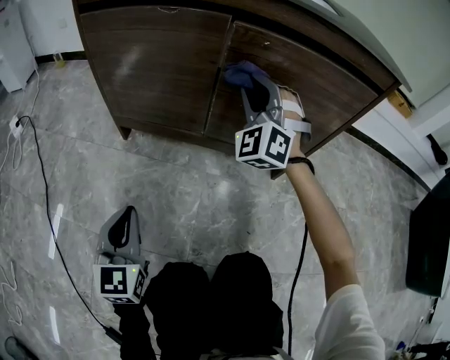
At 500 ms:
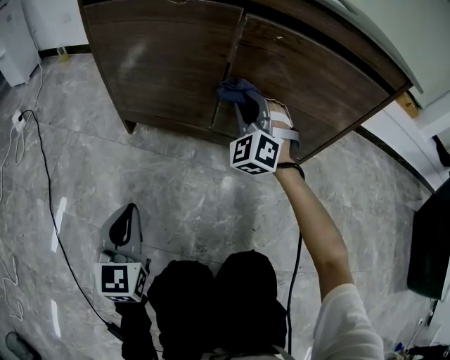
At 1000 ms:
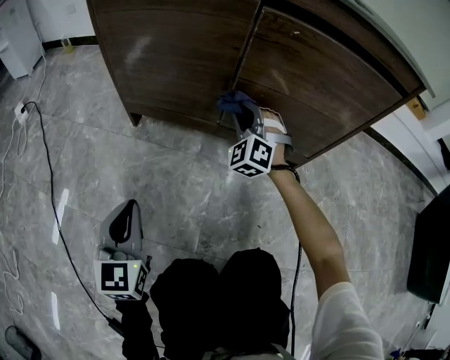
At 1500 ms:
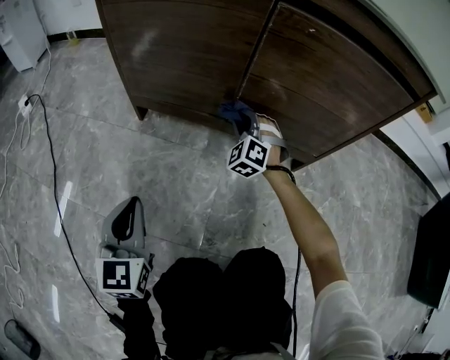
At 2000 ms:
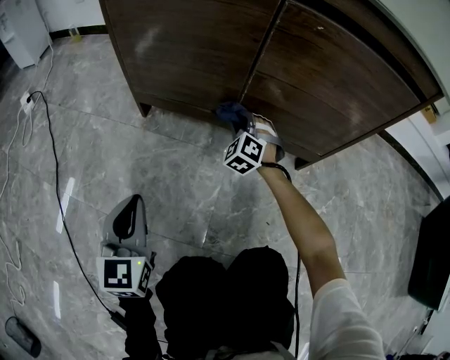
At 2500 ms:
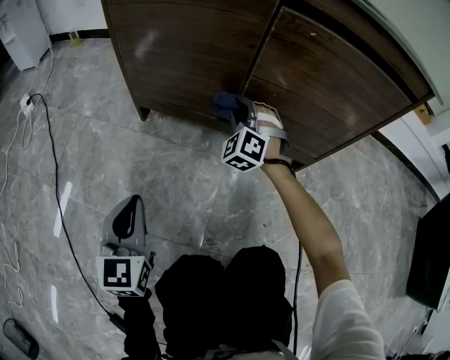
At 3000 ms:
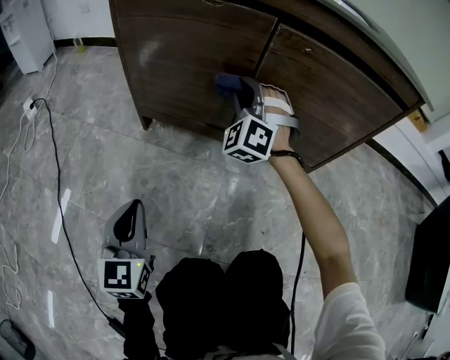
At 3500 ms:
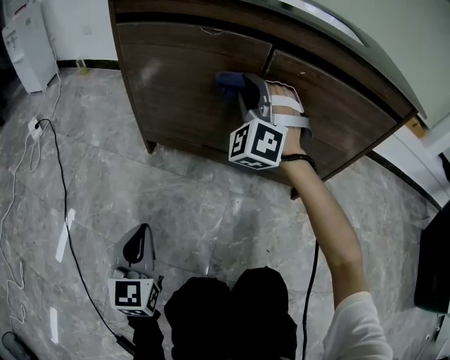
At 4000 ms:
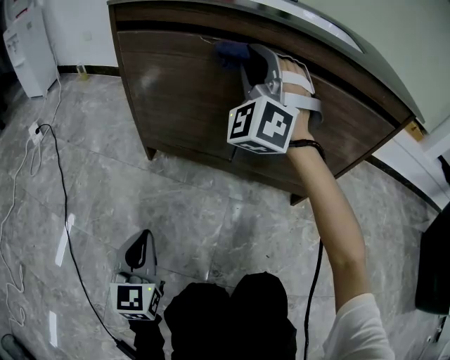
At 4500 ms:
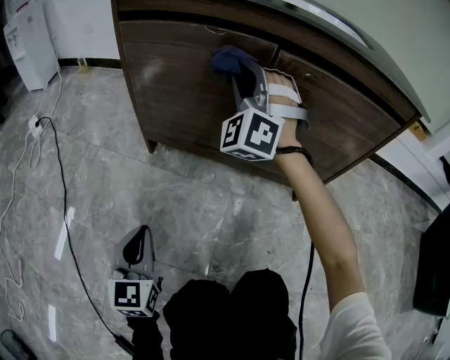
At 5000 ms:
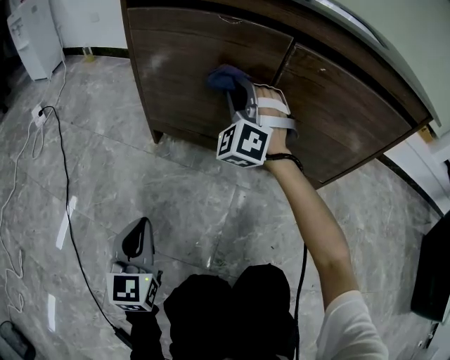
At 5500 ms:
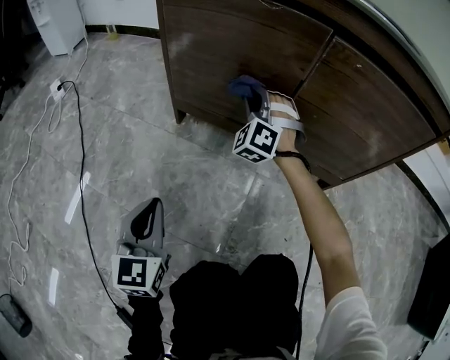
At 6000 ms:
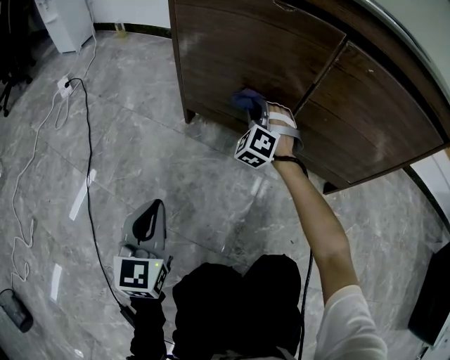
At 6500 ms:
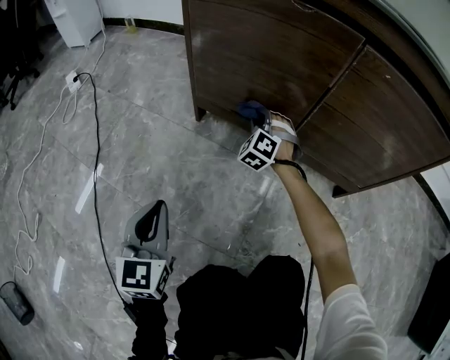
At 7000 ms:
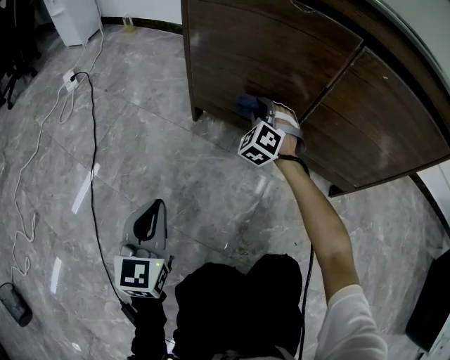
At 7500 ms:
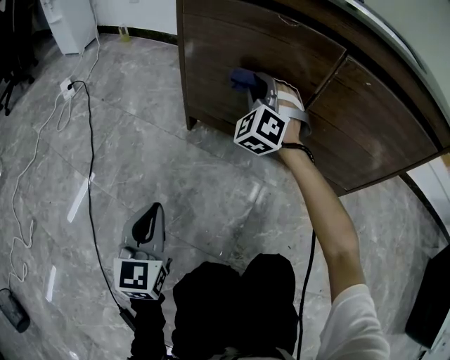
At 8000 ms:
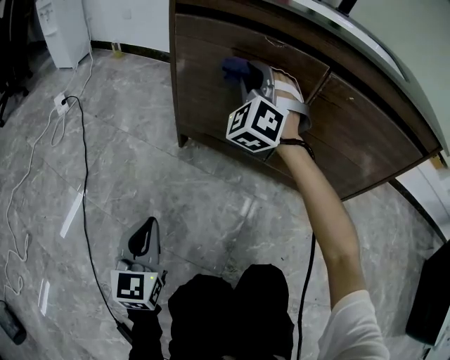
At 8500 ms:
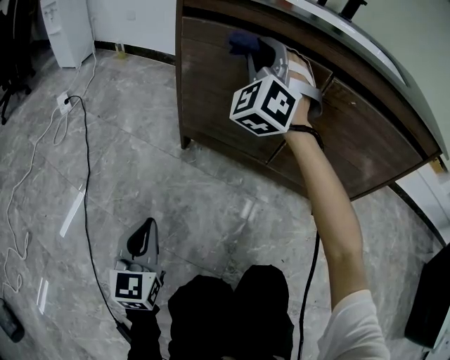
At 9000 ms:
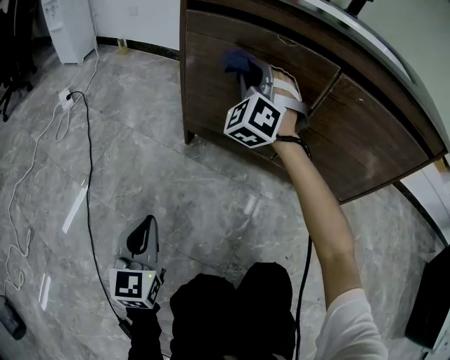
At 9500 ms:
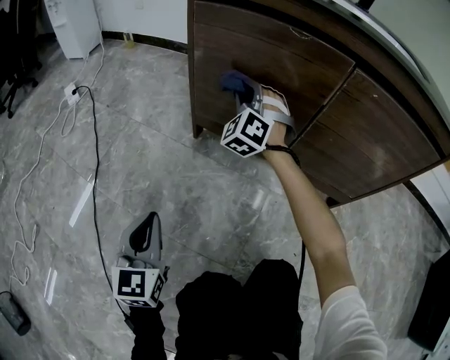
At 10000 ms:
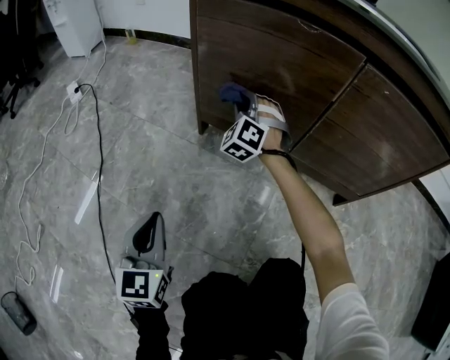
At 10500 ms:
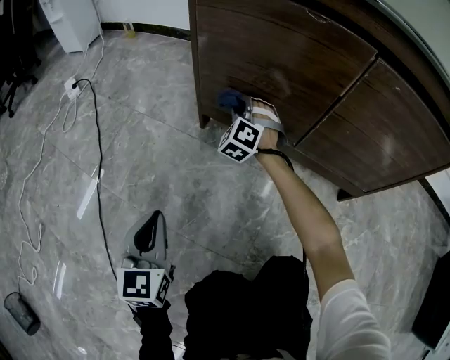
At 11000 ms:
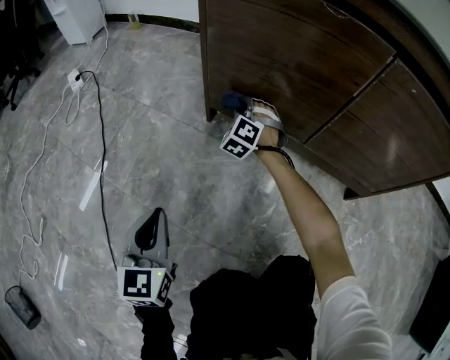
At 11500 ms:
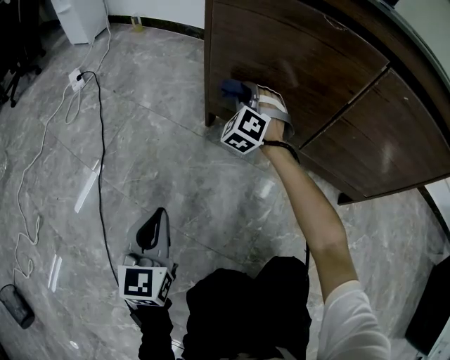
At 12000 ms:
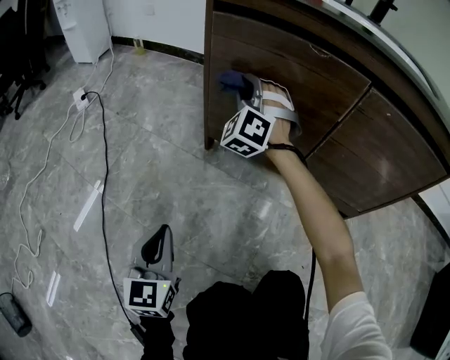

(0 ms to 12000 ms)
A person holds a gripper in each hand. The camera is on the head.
0 ms - 2000 ms: The right gripper heads downward, covering roughly 30 cm, and rotates approximately 30 degrees.
2000 ms - 4000 ms: The right gripper shifts about 40 cm upward, and angles its fingers upward, by approximately 40 degrees.
4000 ms - 6000 ms: The right gripper heads downward, covering some 30 cm, and changes its angle by some 30 degrees; the left gripper travels to the left by some 5 cm.
6000 ms - 8000 ms: The right gripper is displaced upward by roughly 25 cm.
8000 ms - 10000 ms: The right gripper moves downward, roughly 20 cm.
10000 ms - 12000 ms: The right gripper is displaced upward by about 10 cm.

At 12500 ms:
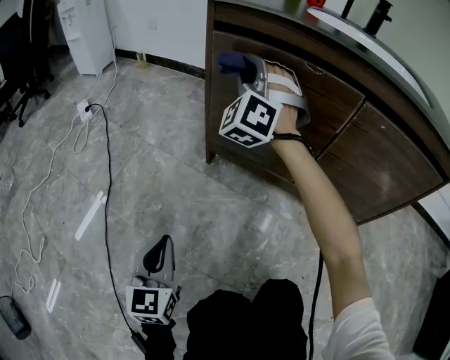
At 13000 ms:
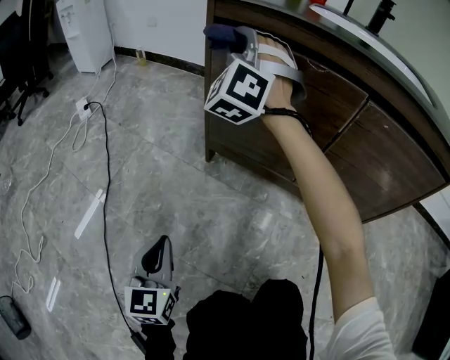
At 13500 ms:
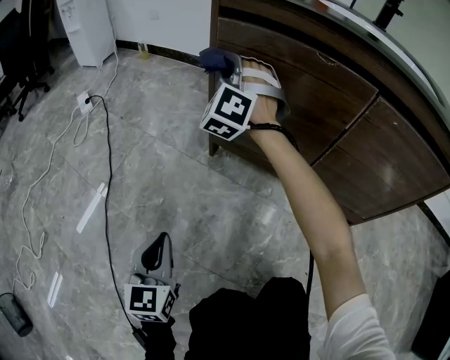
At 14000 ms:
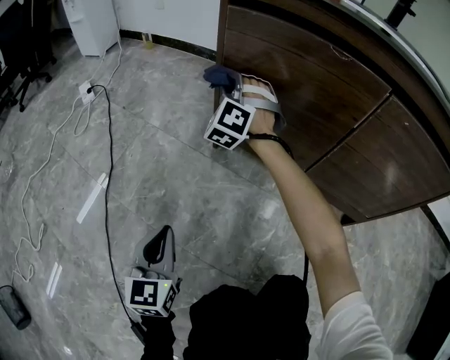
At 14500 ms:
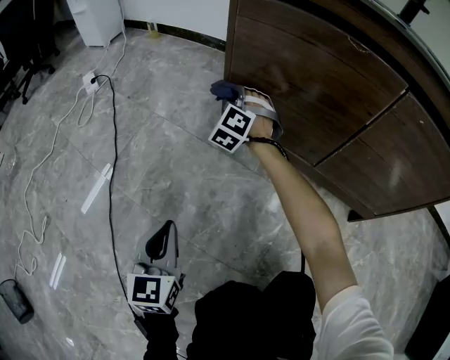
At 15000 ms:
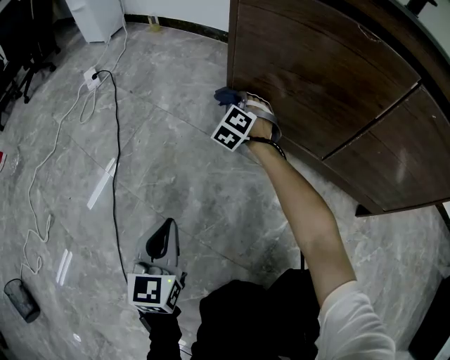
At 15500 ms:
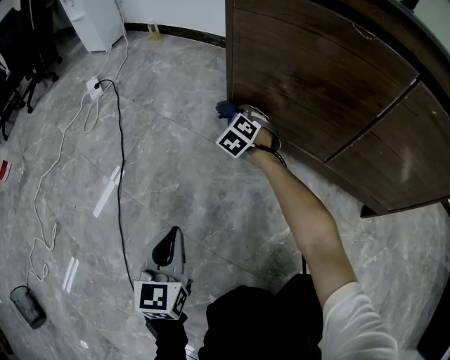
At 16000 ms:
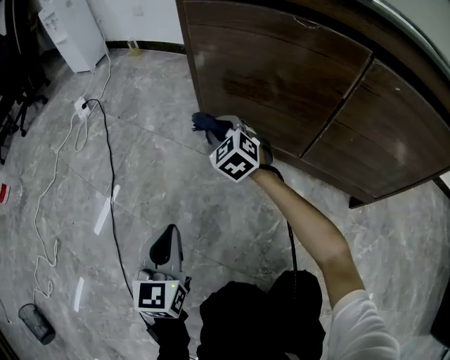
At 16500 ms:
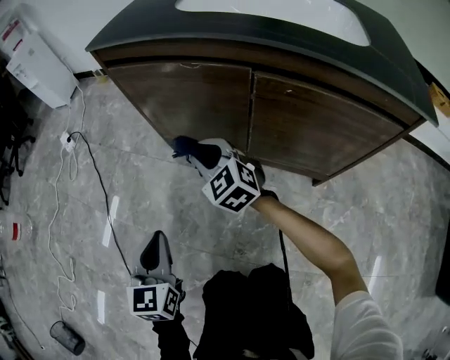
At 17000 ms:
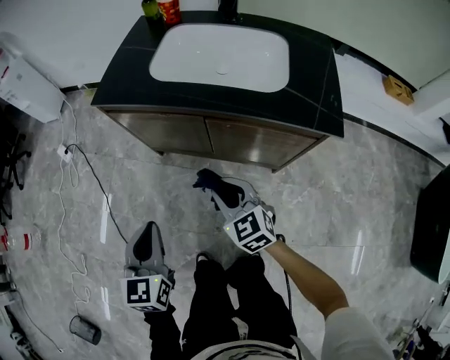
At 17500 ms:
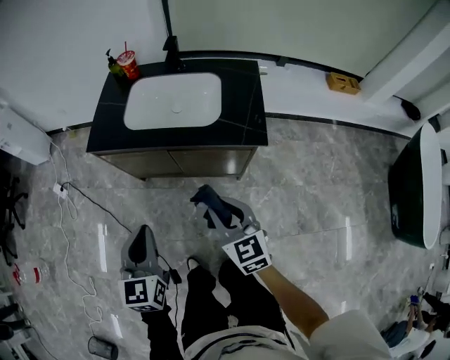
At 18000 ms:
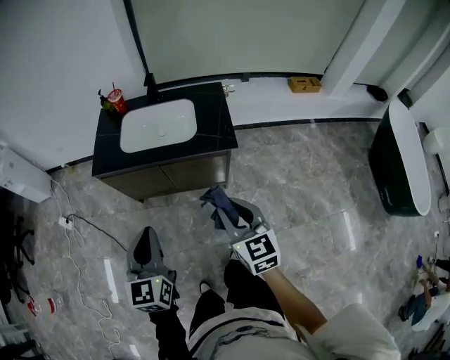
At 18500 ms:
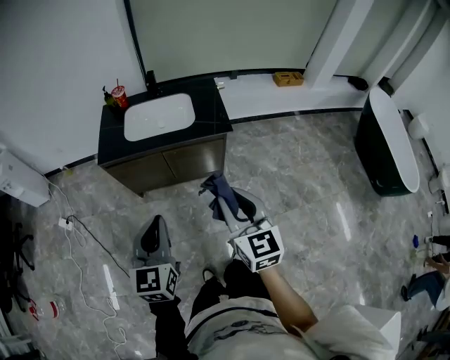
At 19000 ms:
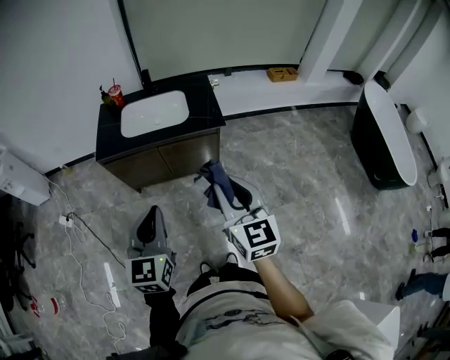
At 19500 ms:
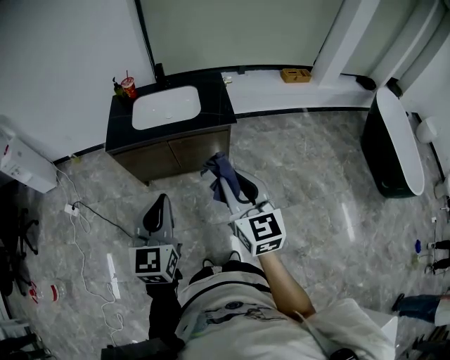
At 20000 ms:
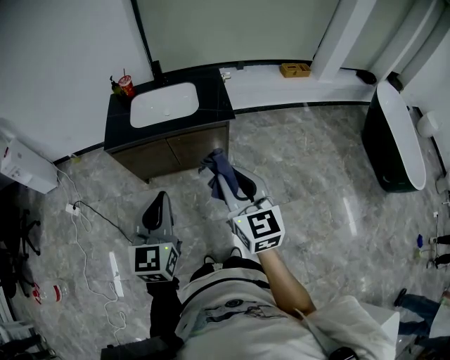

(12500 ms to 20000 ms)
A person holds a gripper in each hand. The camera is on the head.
12500 ms - 14500 ms: The right gripper moves downward, roughly 25 cm, and swivels approximately 30 degrees.
14500 ms - 16500 ms: The left gripper moves upward and to the right, approximately 20 cm. The right gripper goes some 30 cm backward, upward and to the right, and swivels approximately 50 degrees.
16500 ms - 18000 ms: Both grippers move upward, roughly 60 cm. The left gripper rotates about 20 degrees; the right gripper rotates about 50 degrees.
18000 ms - 20000 ms: The left gripper is displaced backward and upward by approximately 15 cm. The right gripper is displaced upward and backward by about 20 cm.

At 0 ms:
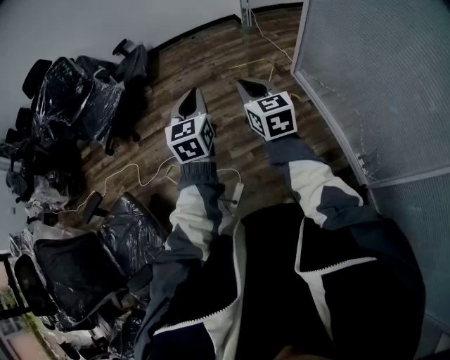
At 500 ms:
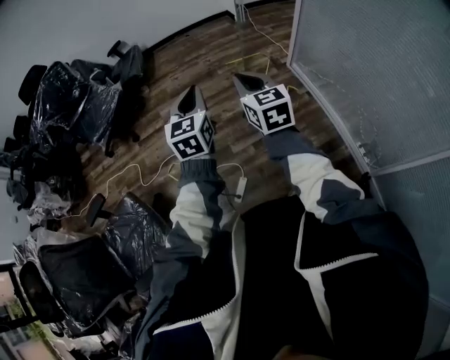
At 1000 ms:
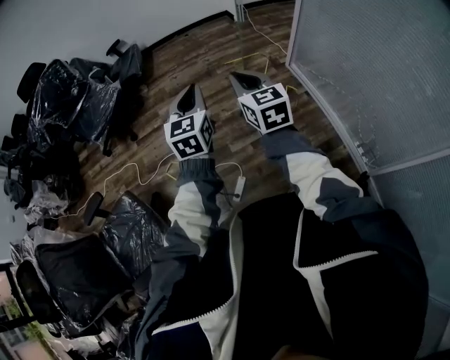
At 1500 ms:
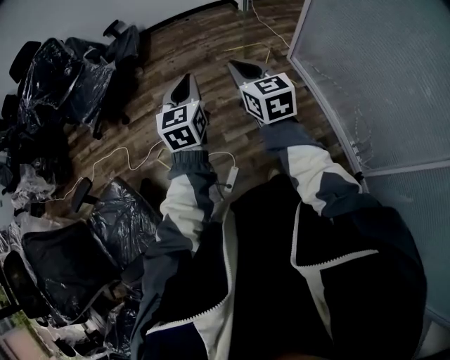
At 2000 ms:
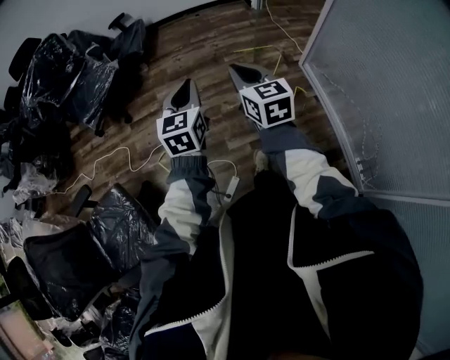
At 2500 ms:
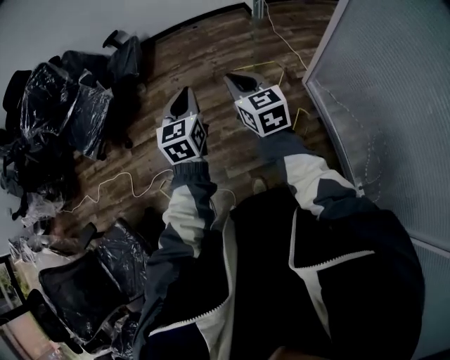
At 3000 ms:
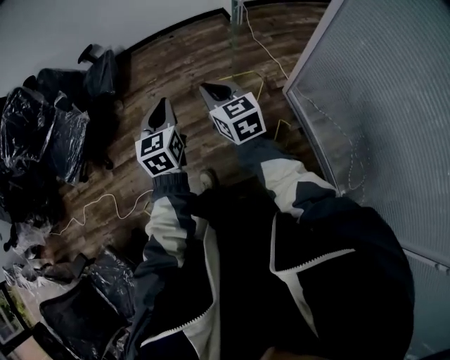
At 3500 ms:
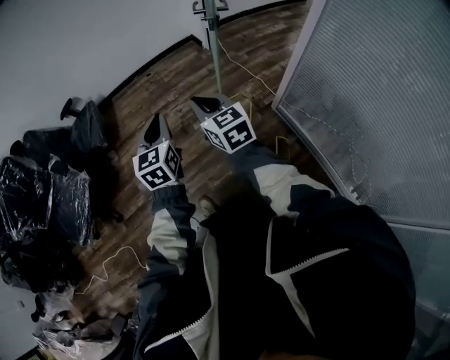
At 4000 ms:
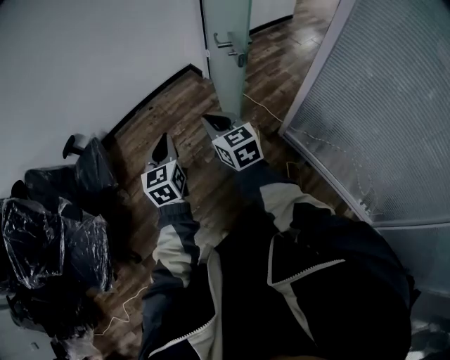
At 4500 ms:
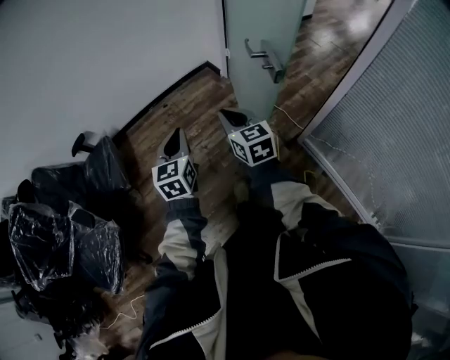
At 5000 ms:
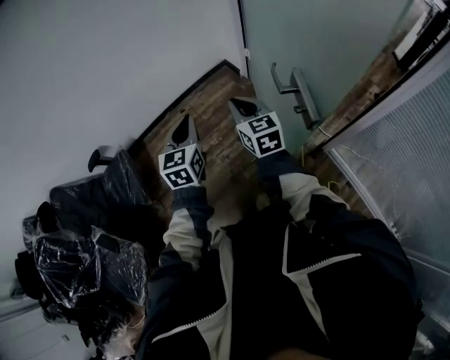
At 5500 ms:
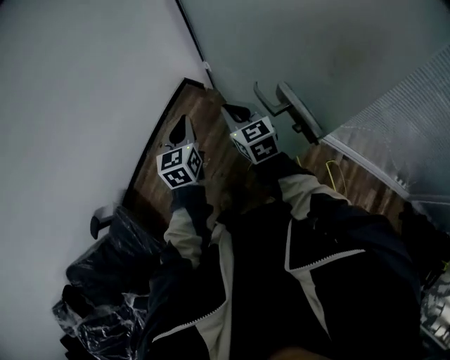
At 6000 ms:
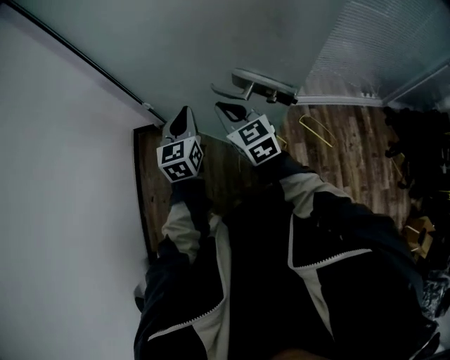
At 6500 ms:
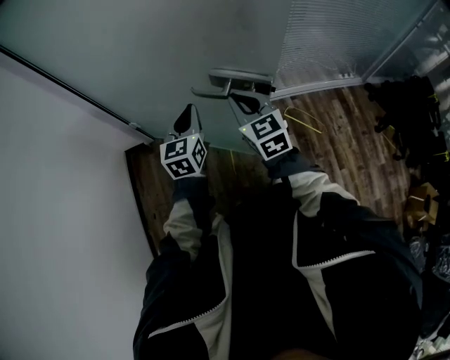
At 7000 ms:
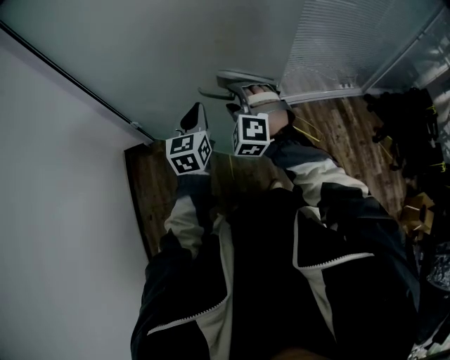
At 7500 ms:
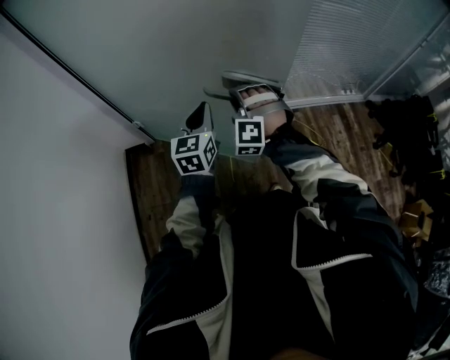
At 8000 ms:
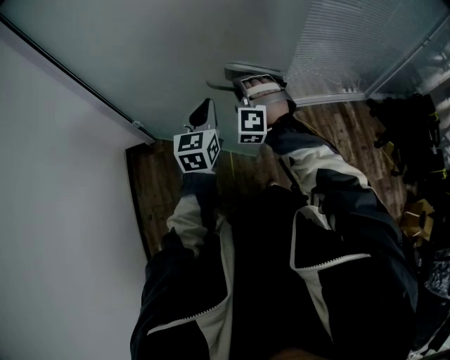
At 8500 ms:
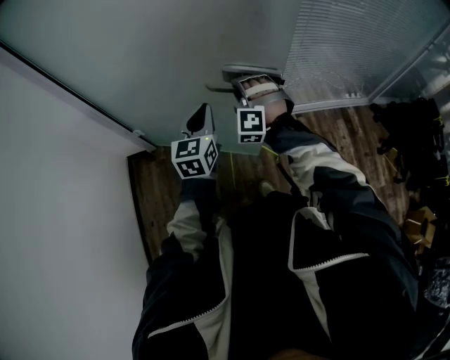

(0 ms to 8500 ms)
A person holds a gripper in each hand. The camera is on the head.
0 ms - 2000 ms: The right gripper travels forward by some 10 cm. Meanwhile the left gripper heads forward and downward, covering roughly 10 cm.
2000 ms - 4000 ms: The pair of grippers is taken forward, roughly 50 cm.
4000 ms - 6500 ms: The left gripper changes place by some 50 cm, and rotates some 70 degrees. Meanwhile the right gripper moves about 30 cm, and changes its angle by approximately 70 degrees.
6500 ms - 8500 ms: The right gripper shifts approximately 10 cm forward, rotates around the line of its fingers by roughly 70 degrees, counterclockwise from behind, and opens its fingers; the left gripper moves to the right, approximately 5 cm.
